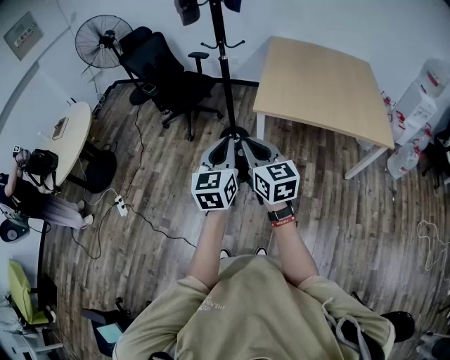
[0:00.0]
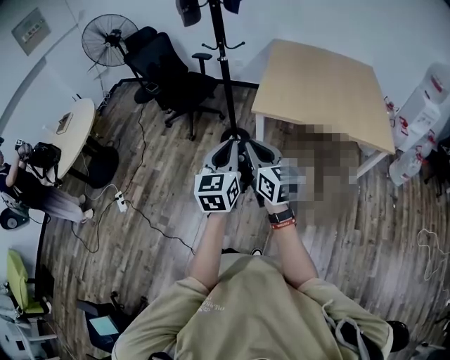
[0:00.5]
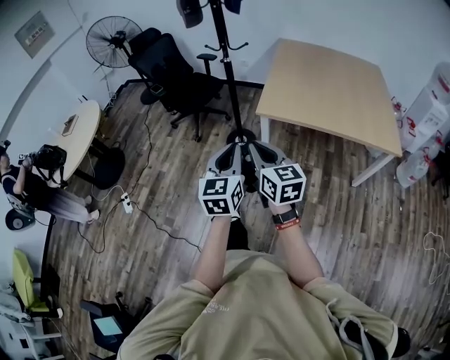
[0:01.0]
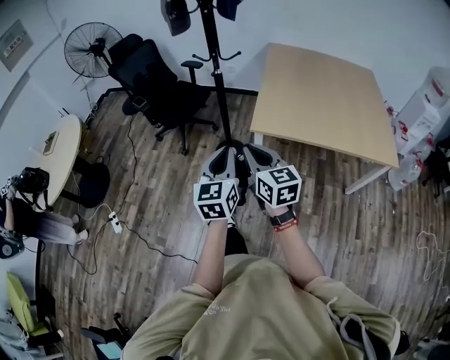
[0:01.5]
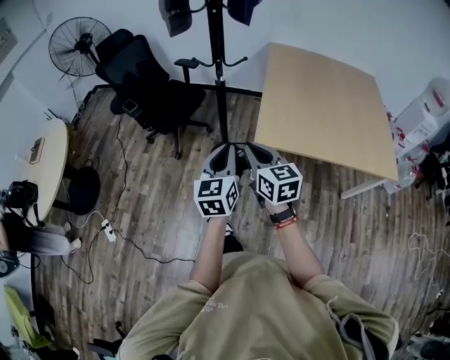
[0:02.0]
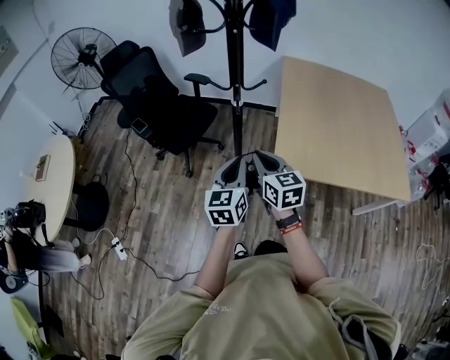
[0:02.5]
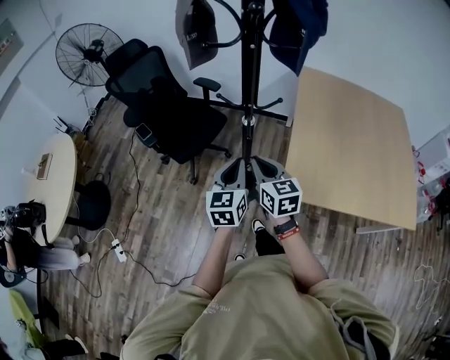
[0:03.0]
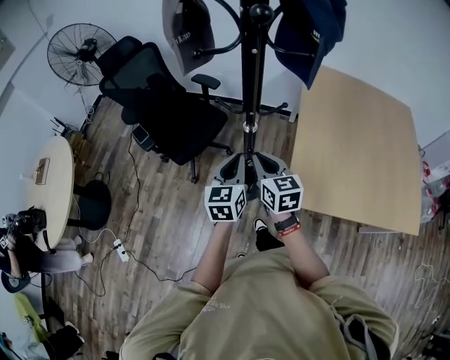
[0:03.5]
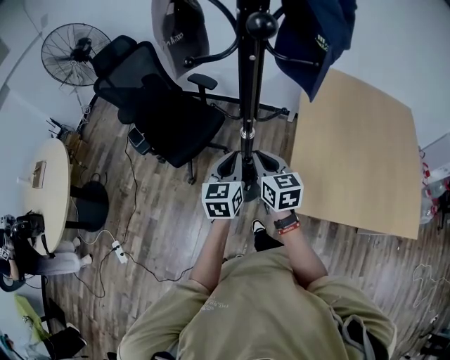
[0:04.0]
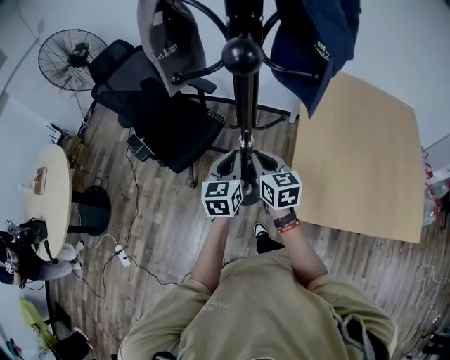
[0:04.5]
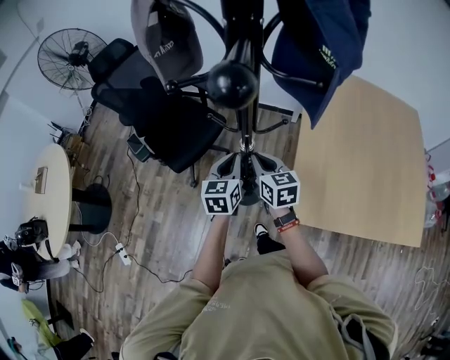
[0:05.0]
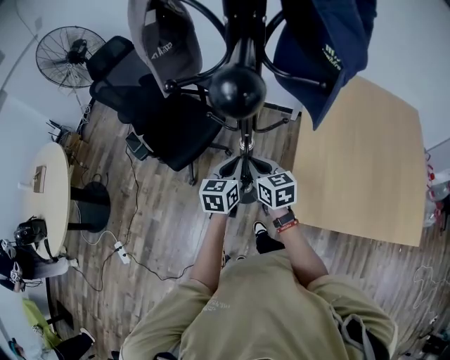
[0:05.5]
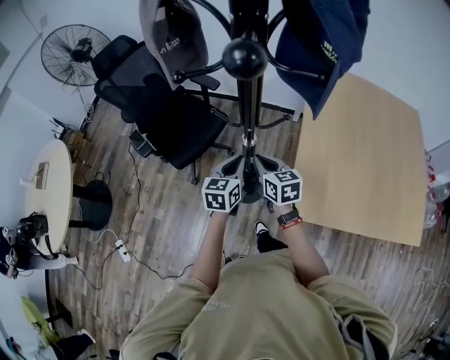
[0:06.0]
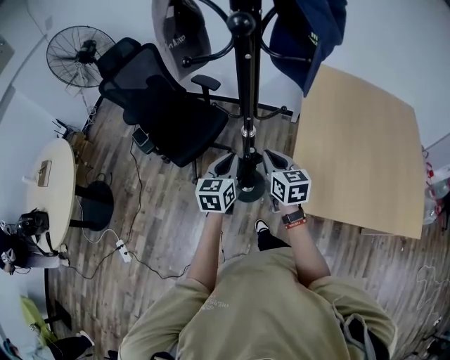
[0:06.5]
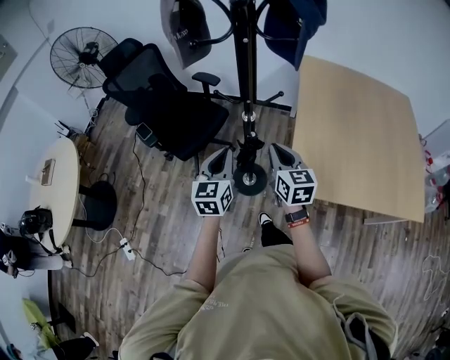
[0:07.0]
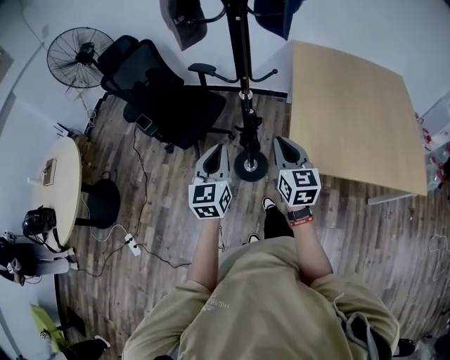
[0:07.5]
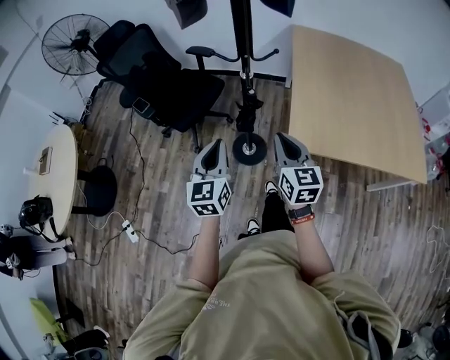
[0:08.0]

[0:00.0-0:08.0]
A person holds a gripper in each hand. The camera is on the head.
0:00.0 to 0:02.0: The grippers both shift forward by roughly 35 cm.
0:02.0 to 0:04.0: The pair of grippers is taken forward, approximately 40 cm.
0:04.0 to 0:06.0: The left gripper moves downward, roughly 5 cm. The right gripper travels downward and forward by approximately 10 cm.
0:06.0 to 0:08.0: Both grippers travel together backward, some 30 cm. The right gripper swivels some 20 degrees.

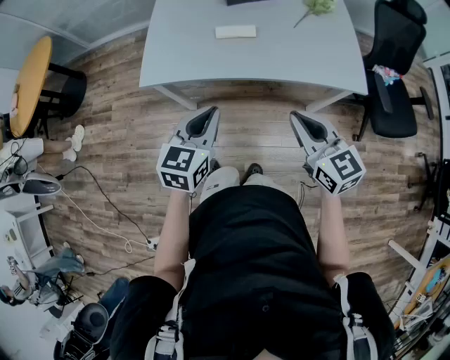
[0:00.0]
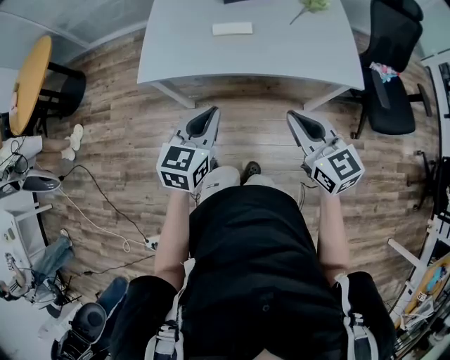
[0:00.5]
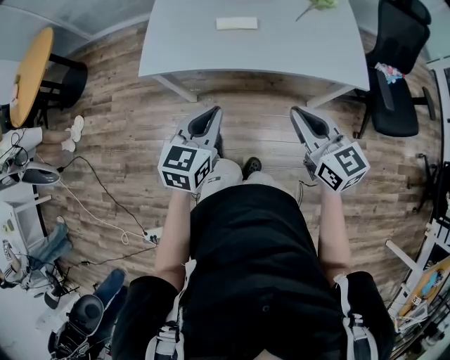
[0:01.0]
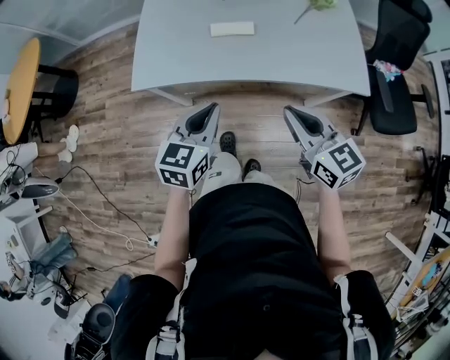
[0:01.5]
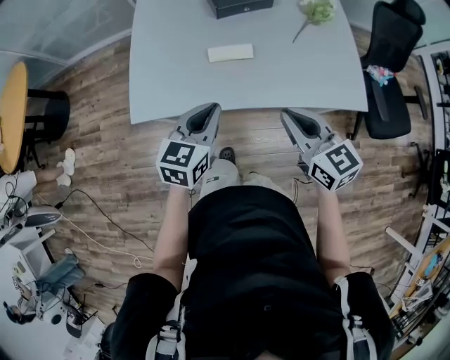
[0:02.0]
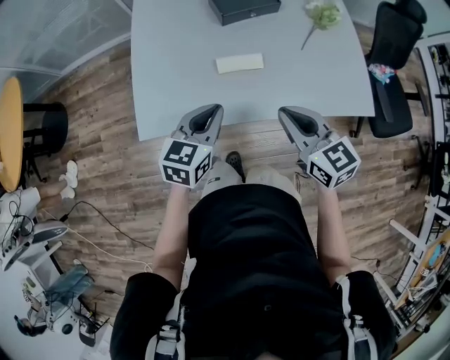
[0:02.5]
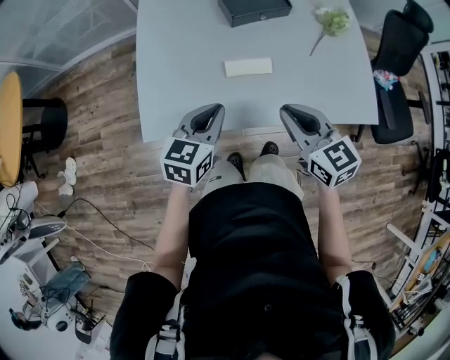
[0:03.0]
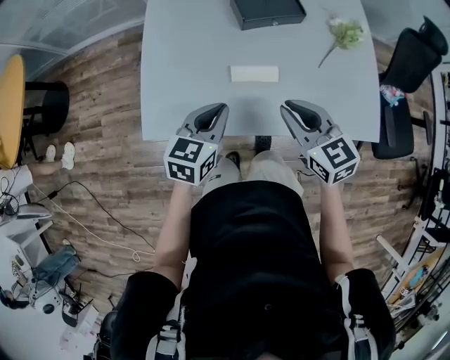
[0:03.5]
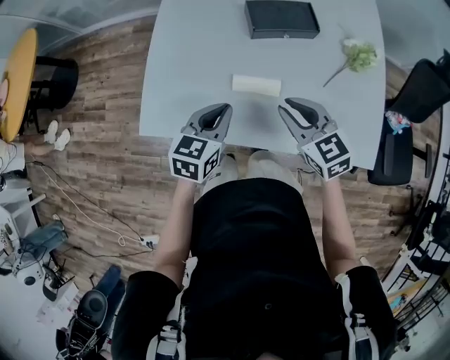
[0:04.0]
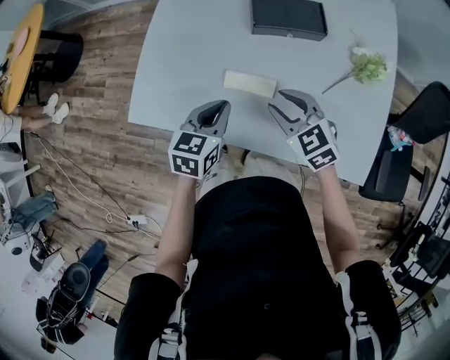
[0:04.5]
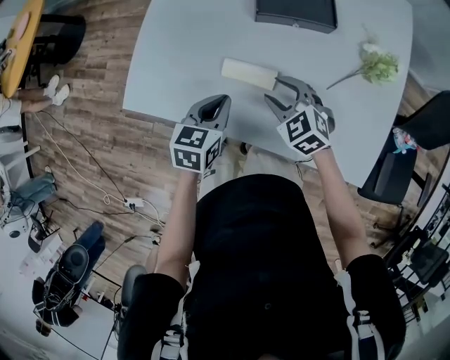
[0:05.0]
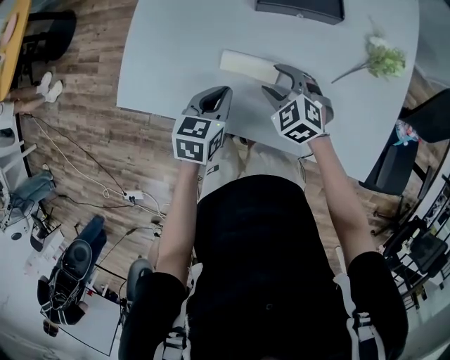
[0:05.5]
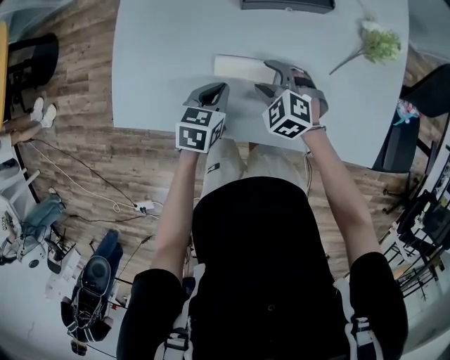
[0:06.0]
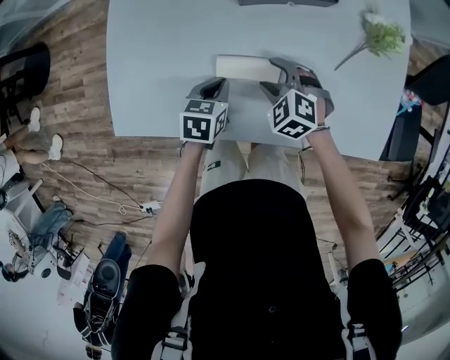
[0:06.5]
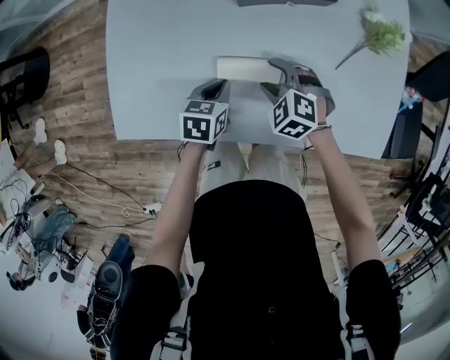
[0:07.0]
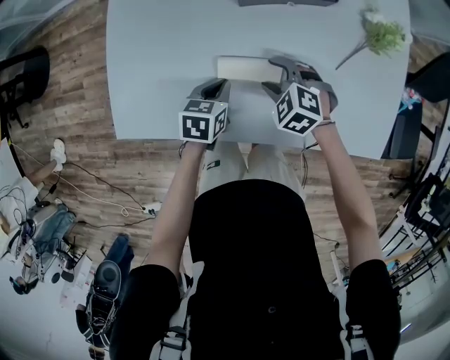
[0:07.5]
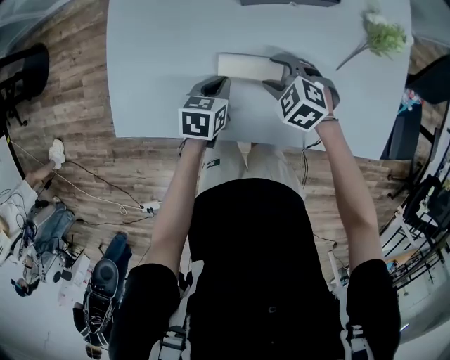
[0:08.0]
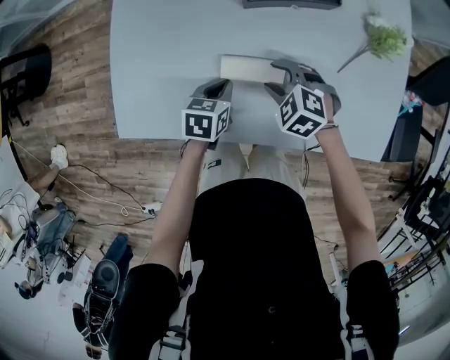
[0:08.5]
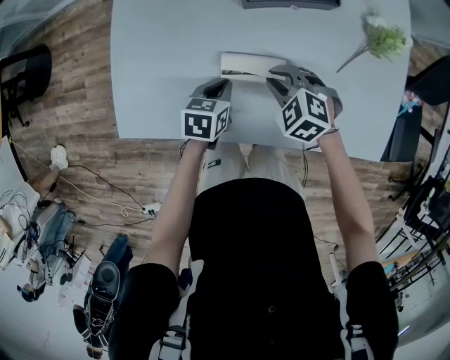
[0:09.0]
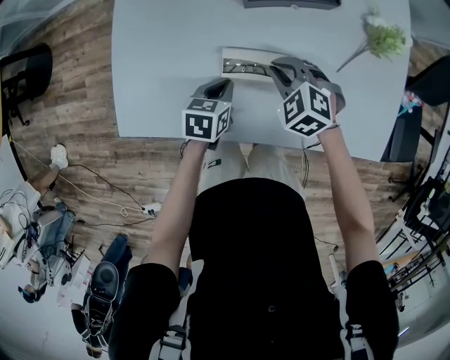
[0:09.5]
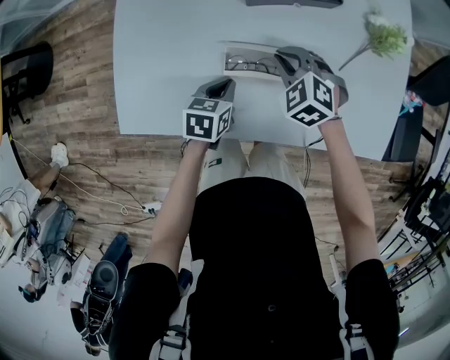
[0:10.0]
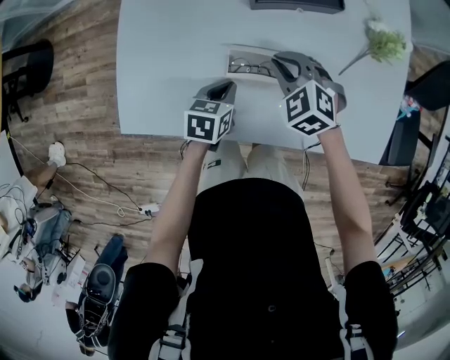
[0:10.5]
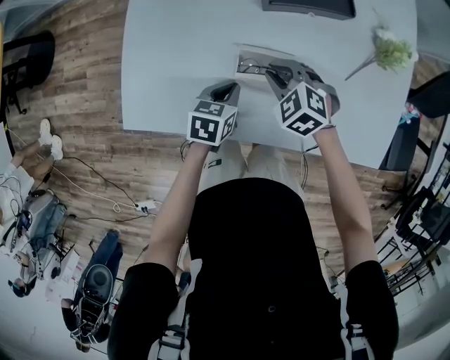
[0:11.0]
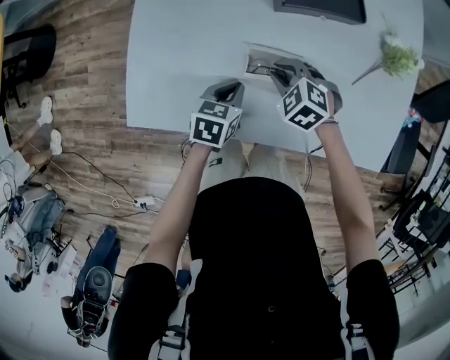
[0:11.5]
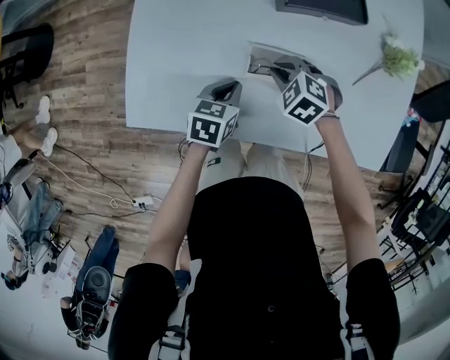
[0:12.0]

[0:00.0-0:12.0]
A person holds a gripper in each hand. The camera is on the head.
0:00.0 to 0:02.0: Both grippers travel together forward, about 20 cm.
0:02.0 to 0:04.0: Both grippers move forward, some 20 cm. The right gripper swivels approximately 20 degrees.
0:04.0 to 0:06.0: The right gripper shifts some 20 cm downward and forward, turns by about 40 degrees, and opens, while the left gripper goes approximately 15 cm downward.
0:06.0 to 0:08.0: The left gripper ends up about 5 cm from where it was.
0:08.0 to 0:10.0: The right gripper shifts by roughly 5 cm, and closes.
0:10.0 to 0:12.0: The right gripper travels to the left and downward by some 10 cm.

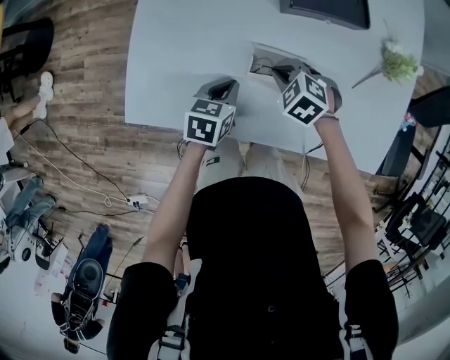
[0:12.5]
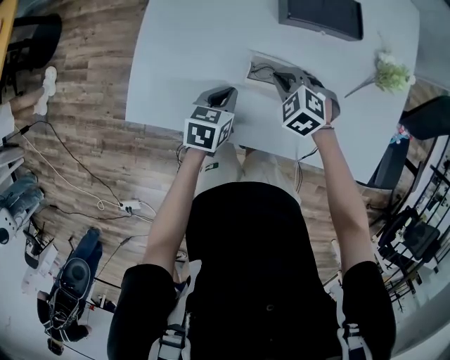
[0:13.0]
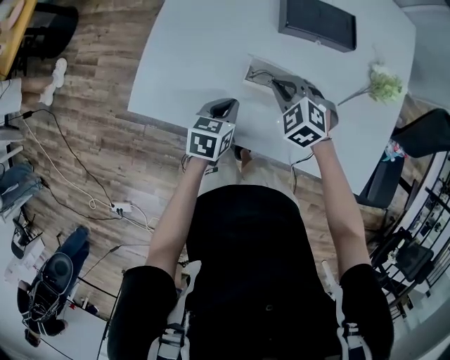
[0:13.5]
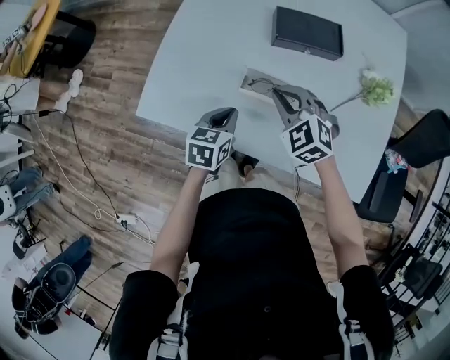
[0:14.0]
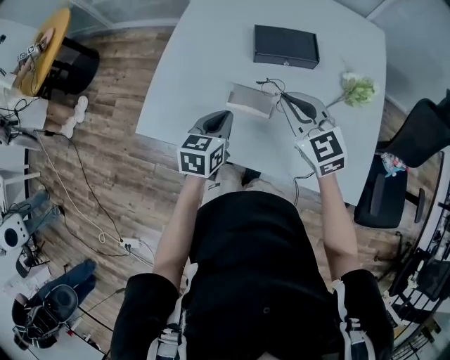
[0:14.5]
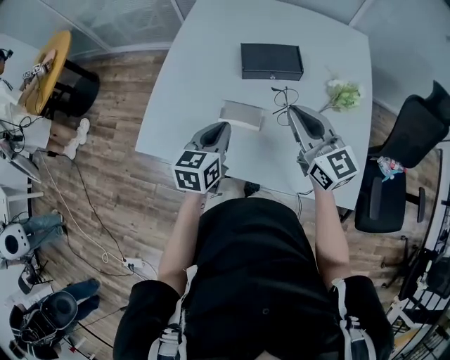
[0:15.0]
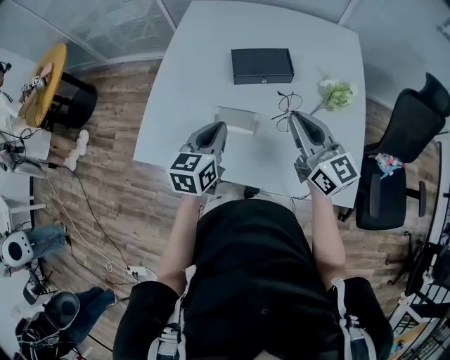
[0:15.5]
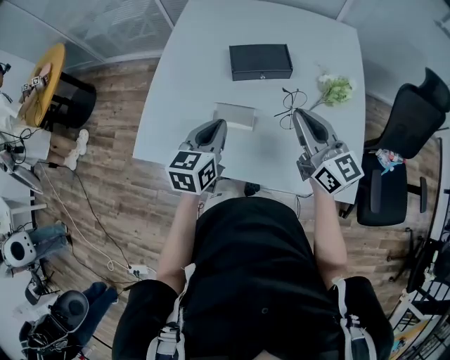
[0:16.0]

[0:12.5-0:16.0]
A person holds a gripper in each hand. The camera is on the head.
0:12.5 to 0:14.5: The left gripper moves upward and backward, some 20 cm, and turns by approximately 20 degrees. The right gripper travels upward by approximately 30 cm, and angles its fingers upward, by about 50 degrees.
0:14.5 to 0:16.0: The left gripper goes some 10 cm upward and to the right. The right gripper heads to the right, upward and backward, covering about 15 cm, and swivels approximately 40 degrees.

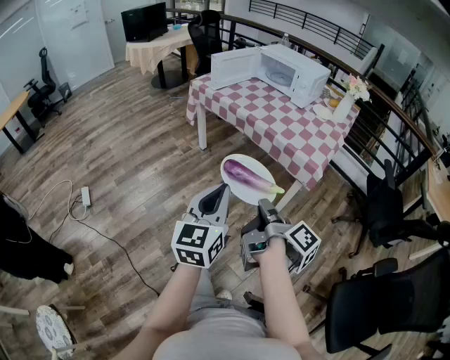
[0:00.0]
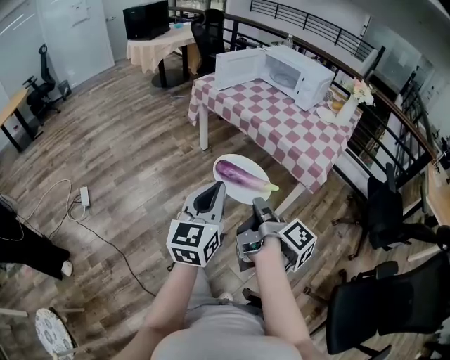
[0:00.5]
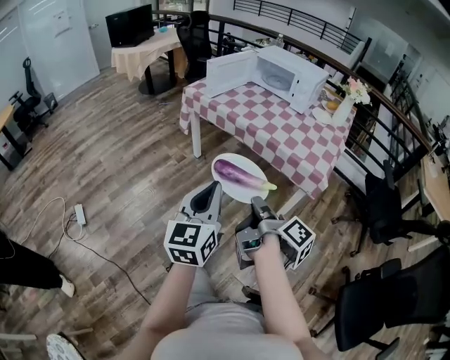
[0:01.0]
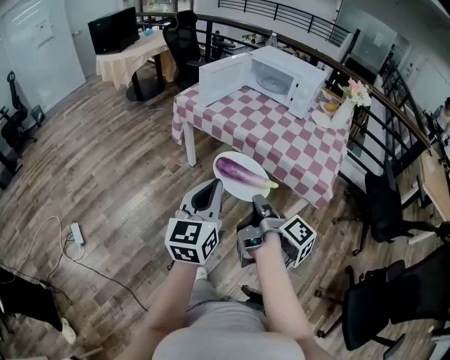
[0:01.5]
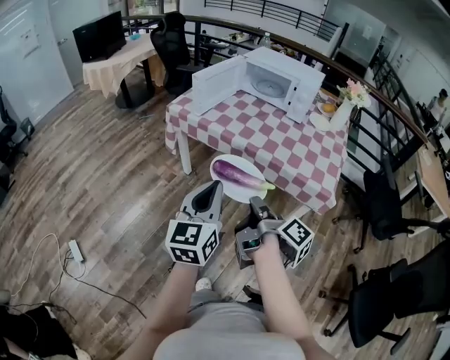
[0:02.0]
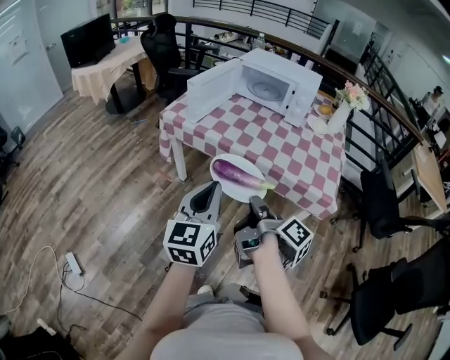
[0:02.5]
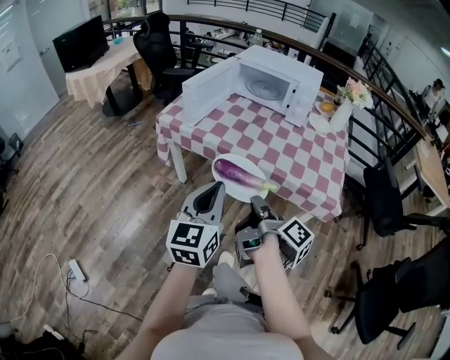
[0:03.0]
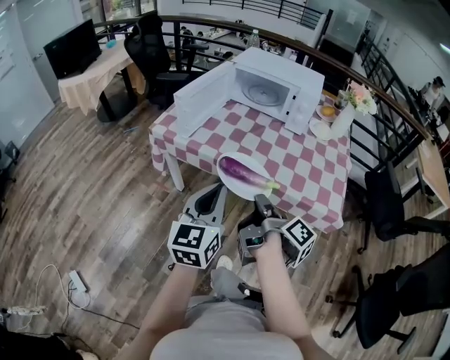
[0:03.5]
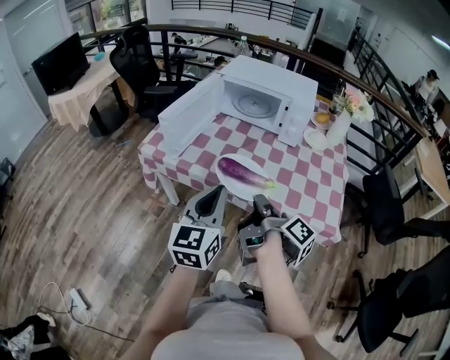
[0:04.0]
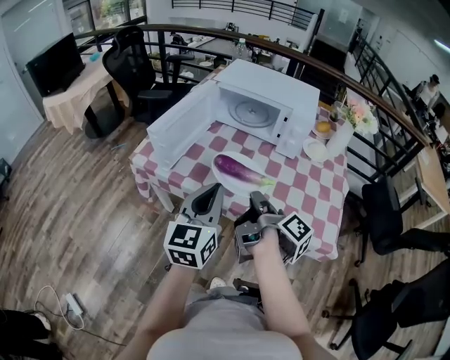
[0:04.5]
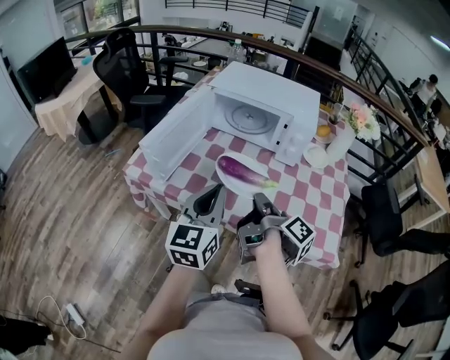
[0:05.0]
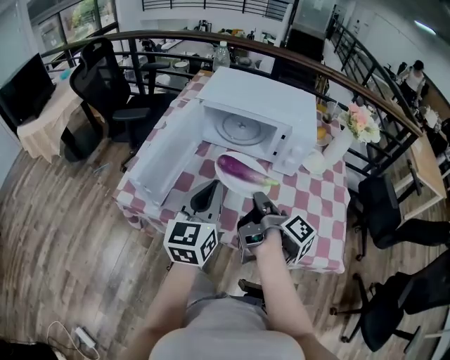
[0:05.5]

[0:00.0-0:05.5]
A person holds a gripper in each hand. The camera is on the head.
0:00.0 to 0:02.0: The left gripper changes place by about 30 cm.
0:02.0 to 0:03.5: The left gripper moves some 15 cm.
0:03.5 to 0:05.5: The left gripper ends up some 30 cm from where it was.
